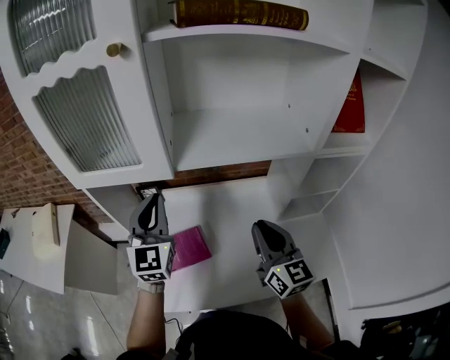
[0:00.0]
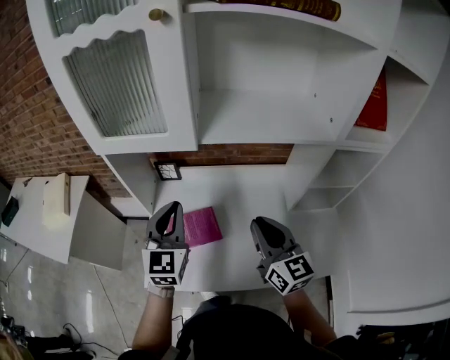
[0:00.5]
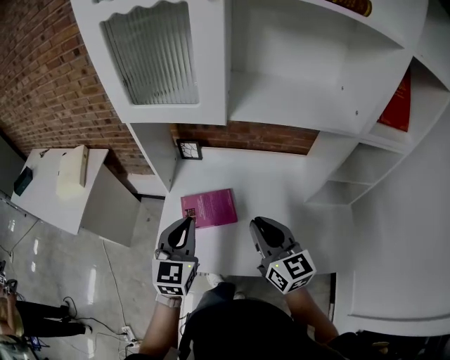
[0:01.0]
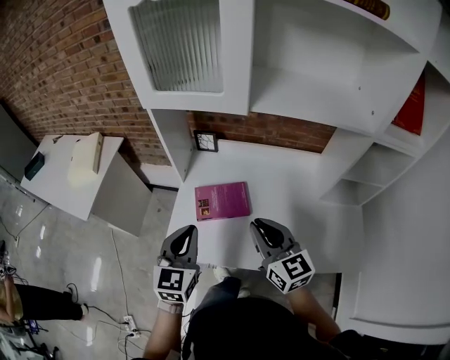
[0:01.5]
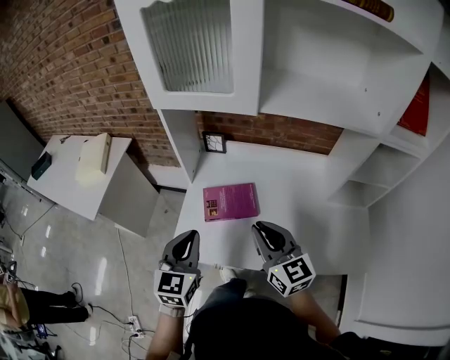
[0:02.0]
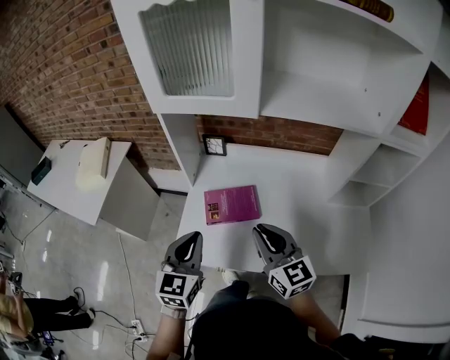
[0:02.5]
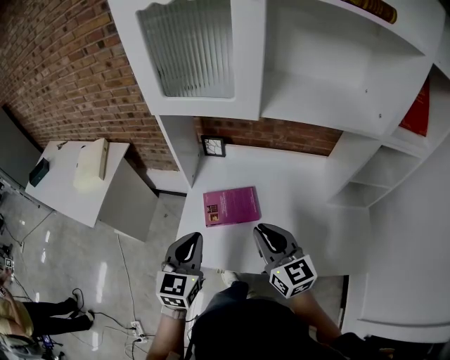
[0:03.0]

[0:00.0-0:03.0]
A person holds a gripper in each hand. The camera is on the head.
0:00.0 to 0:01.5: The right gripper moves to the left, downward and backward, roughly 20 cm, and rotates about 30 degrees. Meanwhile the left gripper is displaced backward, downward and to the left by roughly 25 cm, and swivels roughly 20 degrees.
0:01.5 to 0:03.0: The grippers move only a little.

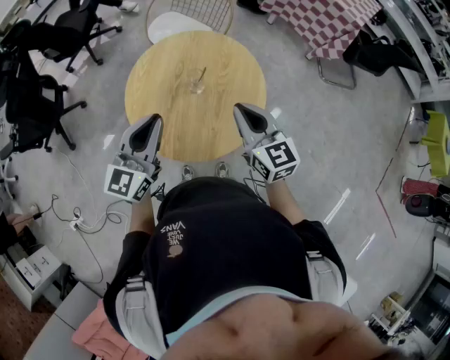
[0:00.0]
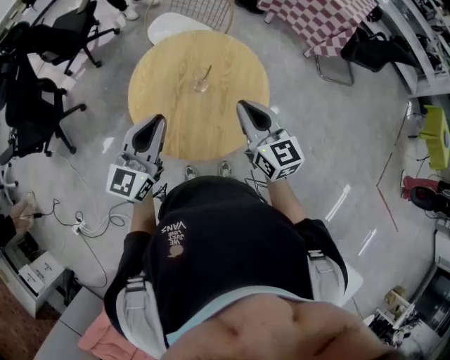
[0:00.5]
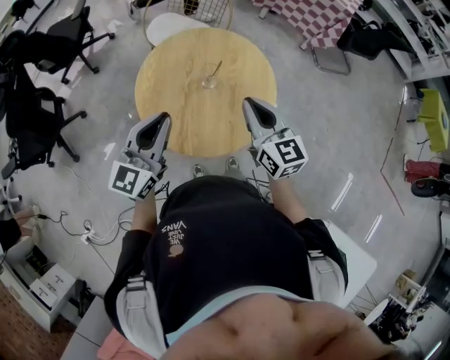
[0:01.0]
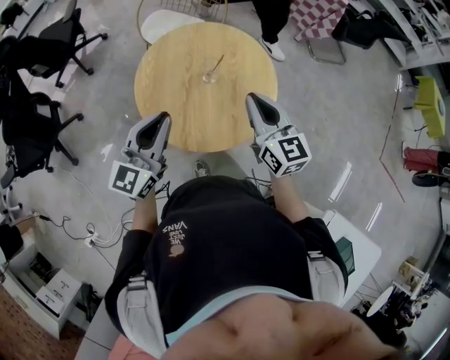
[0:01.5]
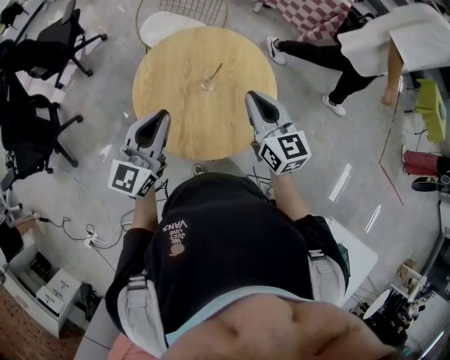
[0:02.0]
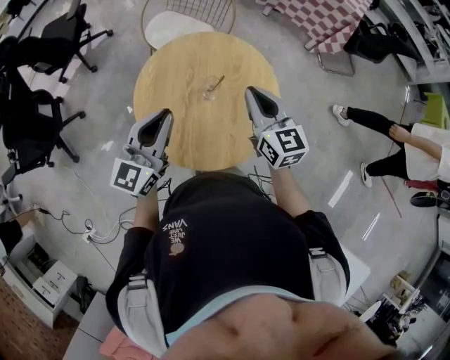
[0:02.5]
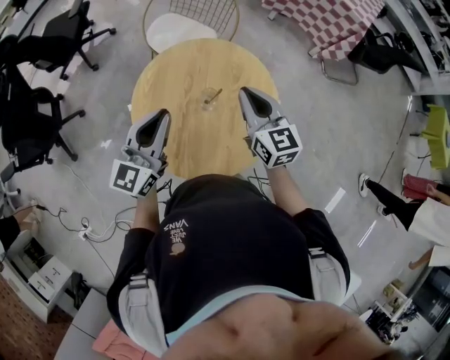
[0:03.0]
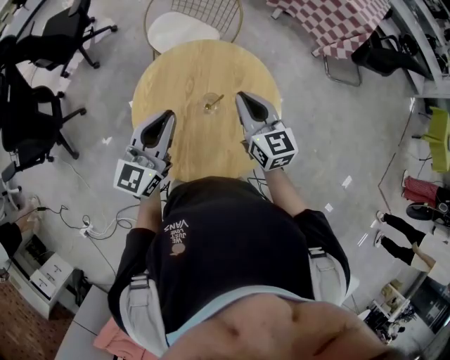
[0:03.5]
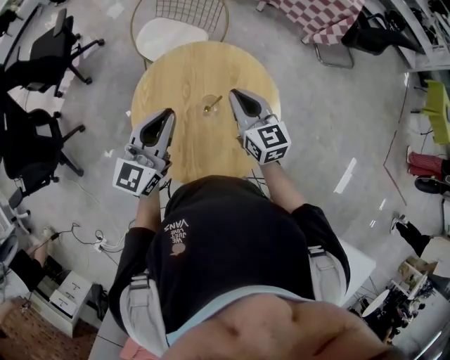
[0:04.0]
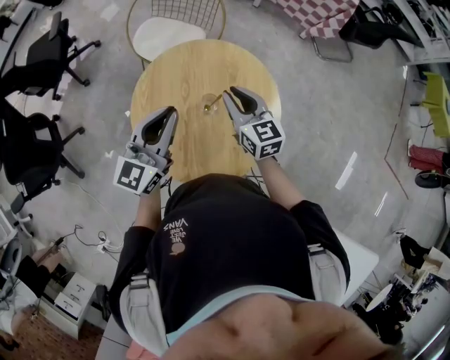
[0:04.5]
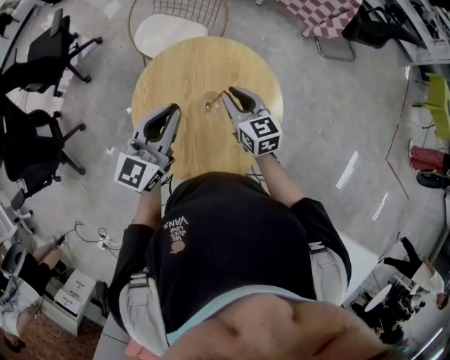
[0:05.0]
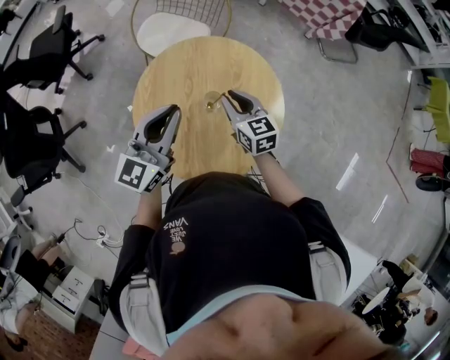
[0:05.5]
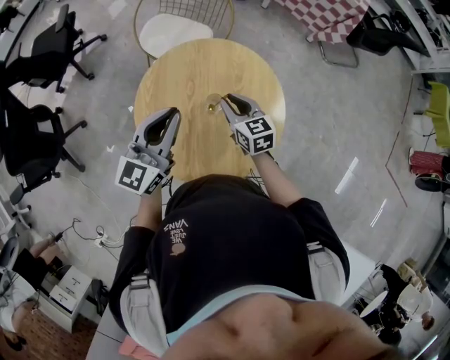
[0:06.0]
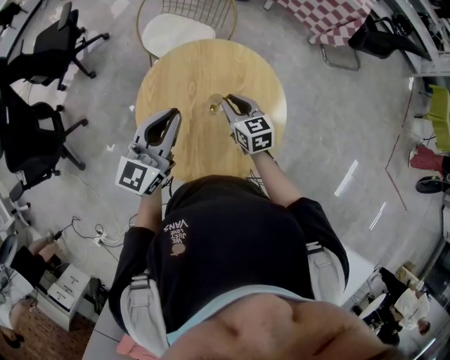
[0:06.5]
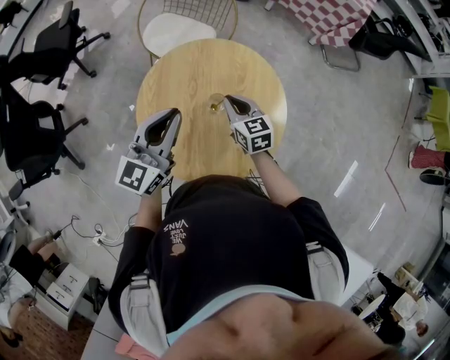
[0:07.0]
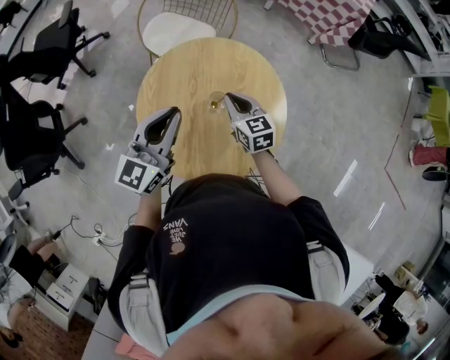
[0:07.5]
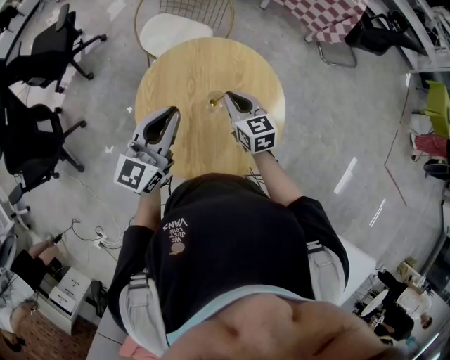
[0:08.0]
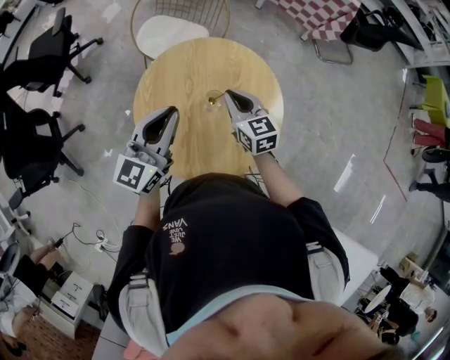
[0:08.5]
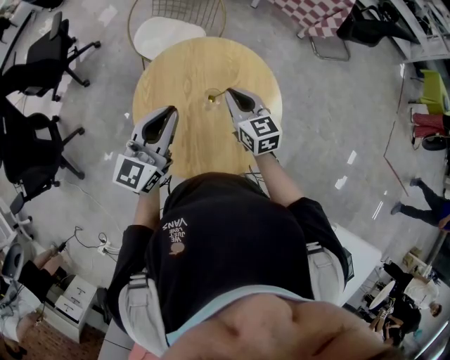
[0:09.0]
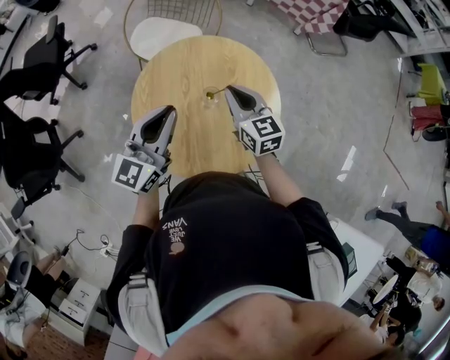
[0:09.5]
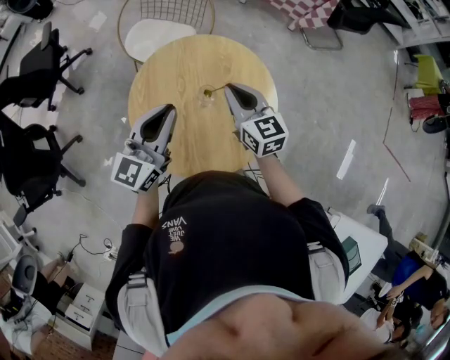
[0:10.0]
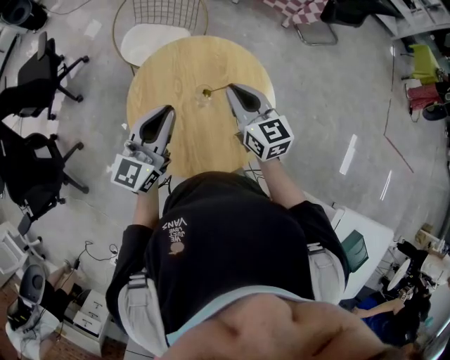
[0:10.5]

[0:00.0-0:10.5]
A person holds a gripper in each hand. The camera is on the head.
0:00.0 to 0:02.0: The grippers both shift to the left by some 5 cm.
0:02.0 to 0:04.0: Both grippers travel together forward, approximately 15 cm.
0:04.0 to 0:06.5: The right gripper moves downward, roughly 10 cm.
0:06.5 to 0:08.5: The right gripper travels upward by some 5 cm.
0:08.5 to 0:10.5: The right gripper is displaced upward by approximately 10 cm.

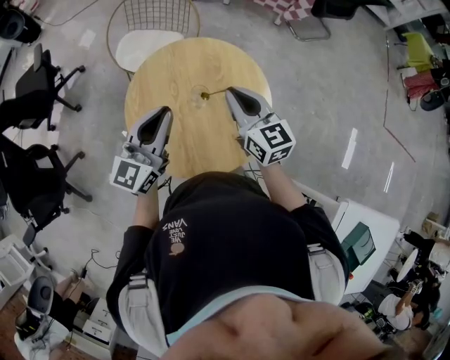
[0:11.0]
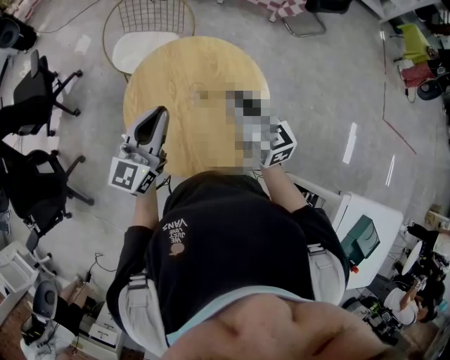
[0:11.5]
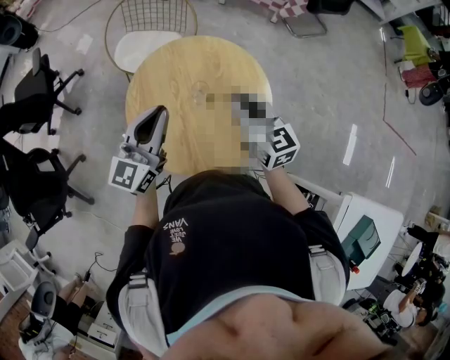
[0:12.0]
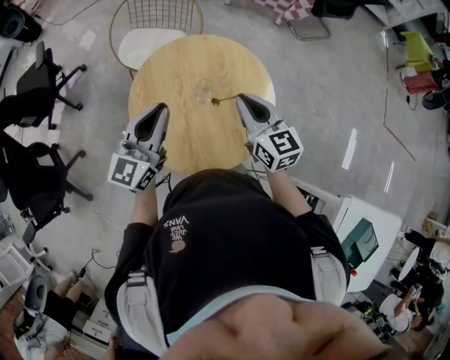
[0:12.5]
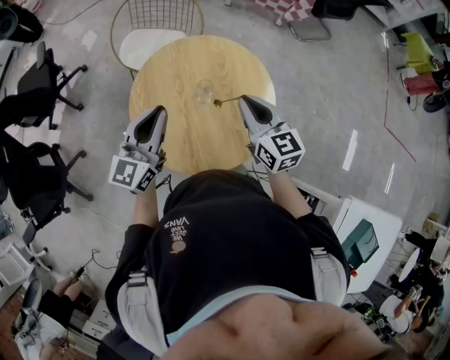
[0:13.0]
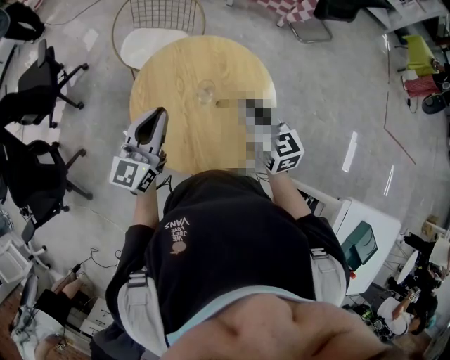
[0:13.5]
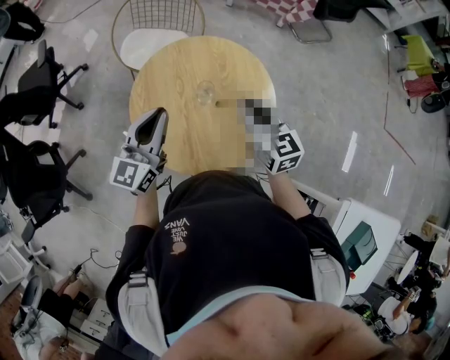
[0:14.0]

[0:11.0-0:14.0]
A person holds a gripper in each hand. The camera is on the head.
0:11.0 to 0:14.0: The grippers stay close to where they were, moving slightly.

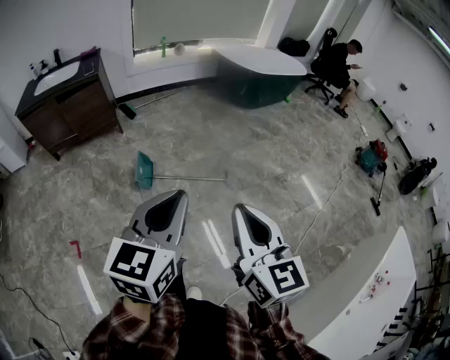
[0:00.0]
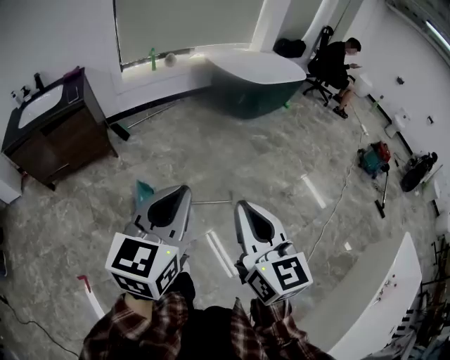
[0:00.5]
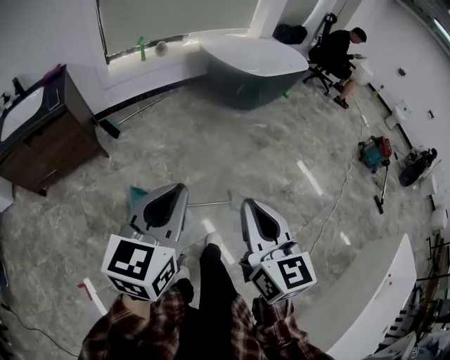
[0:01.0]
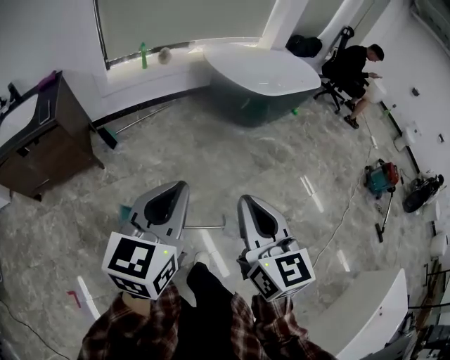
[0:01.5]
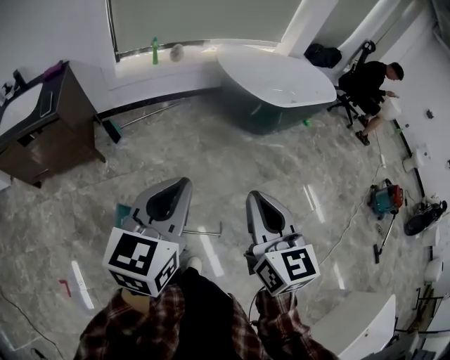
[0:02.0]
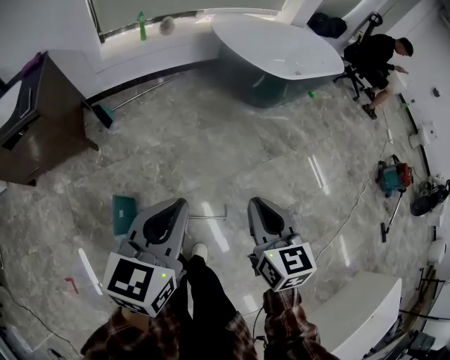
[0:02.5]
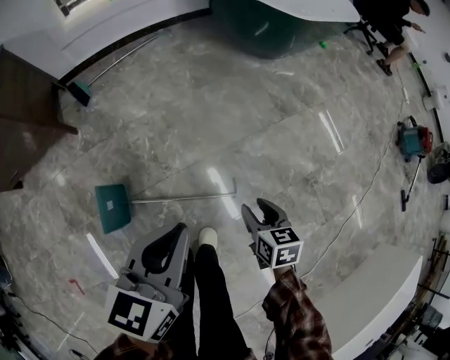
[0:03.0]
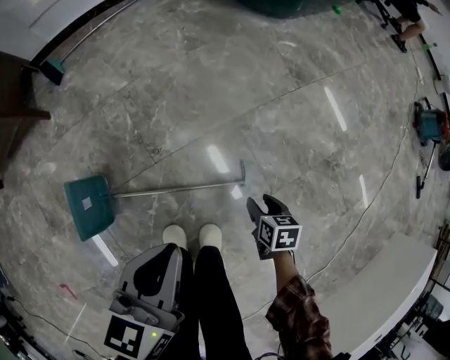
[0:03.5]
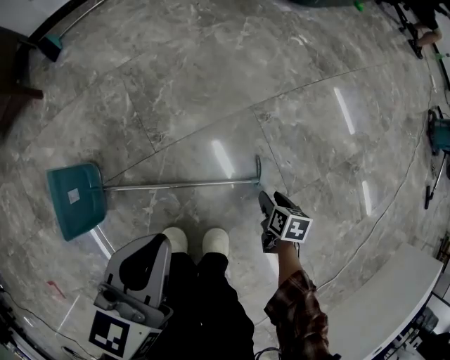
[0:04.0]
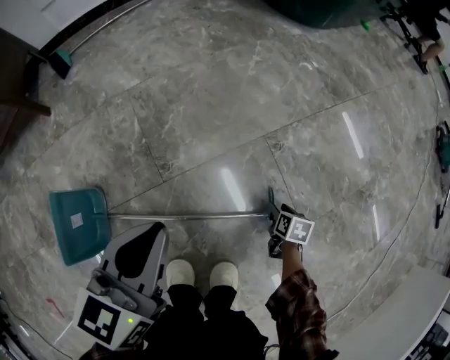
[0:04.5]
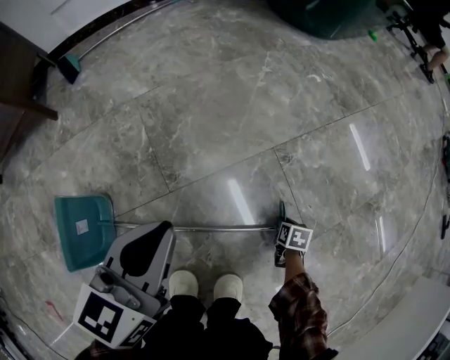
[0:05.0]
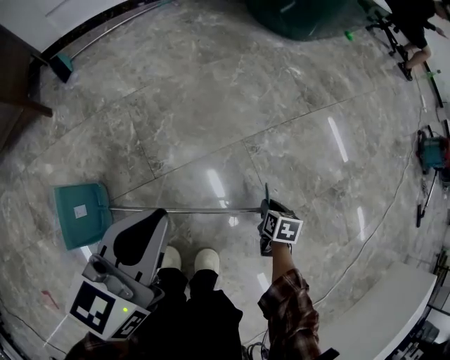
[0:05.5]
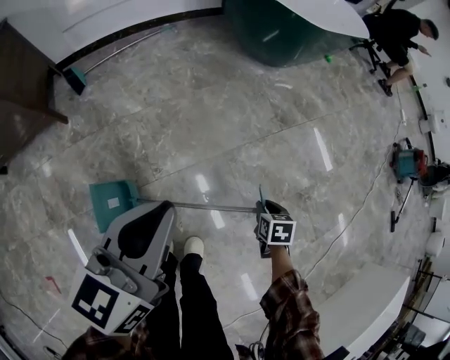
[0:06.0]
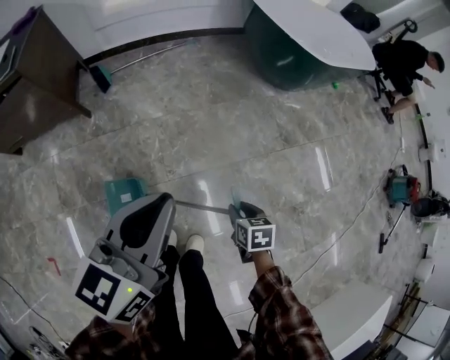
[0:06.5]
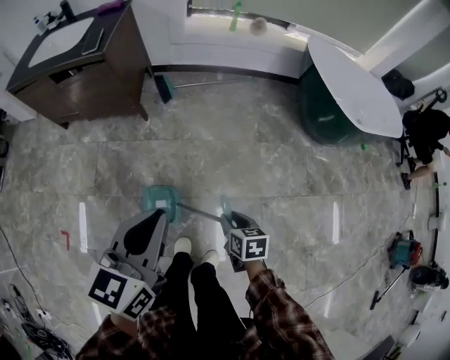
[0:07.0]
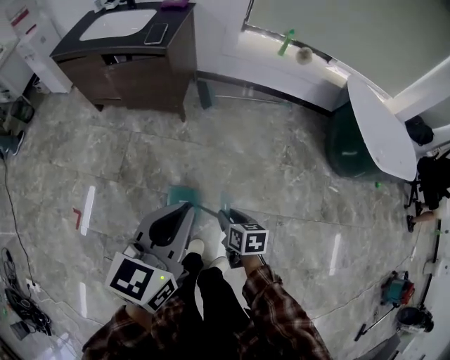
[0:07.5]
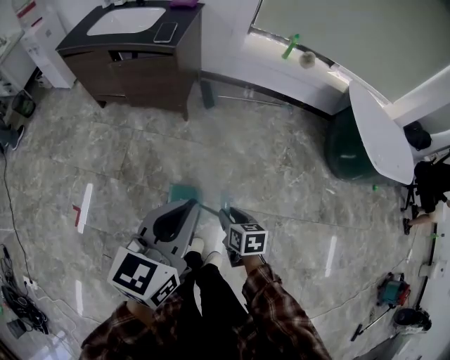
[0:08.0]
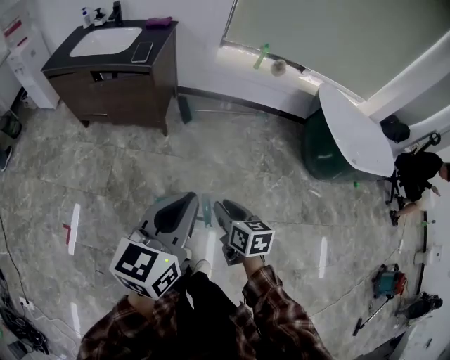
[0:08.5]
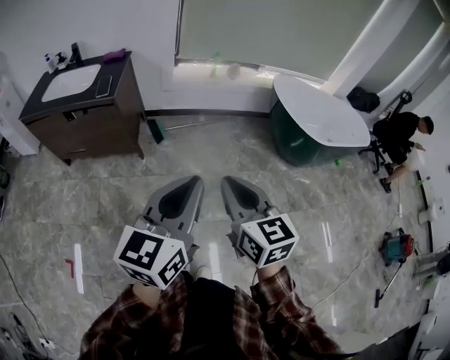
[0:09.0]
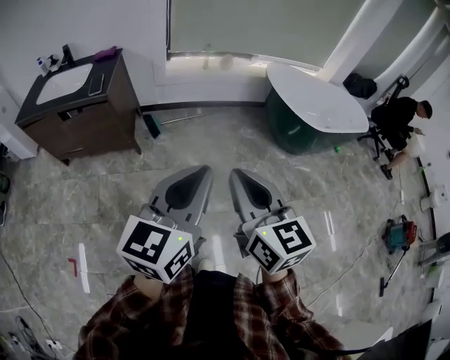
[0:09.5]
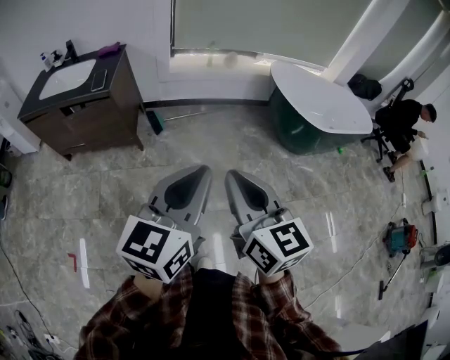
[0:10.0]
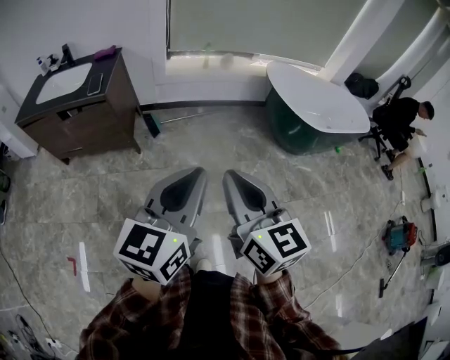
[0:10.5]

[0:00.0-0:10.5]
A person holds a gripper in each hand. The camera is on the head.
0:00.0 to 0:02.0: Both grippers are carried forward, about 60 cm.
0:02.0 to 0:04.0: Both grippers move downward, about 80 cm. The left gripper rotates roughly 20 degrees. The right gripper points its fingers some 50 degrees further downward, and opens its fingers.
0:04.0 to 0:06.5: The grippers both shift upward by some 40 cm. The right gripper turns by some 30 degrees.
0:06.5 to 0:08.5: The right gripper moves about 40 cm, and changes its angle by roughly 30 degrees; the left gripper changes place by roughly 30 cm, and changes its angle by about 20 degrees.
0:08.5 to 0:10.5: The right gripper is displaced upward by roughly 30 cm, angles its fingers upward, by about 30 degrees, and closes its fingers; the left gripper heads to the right and upward, covering approximately 15 cm.
